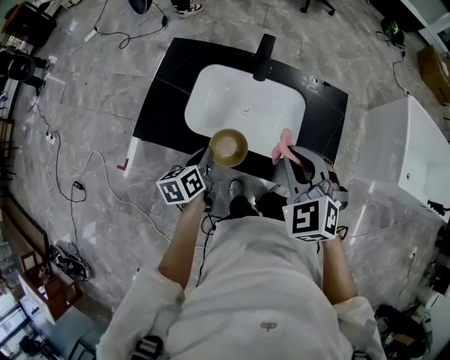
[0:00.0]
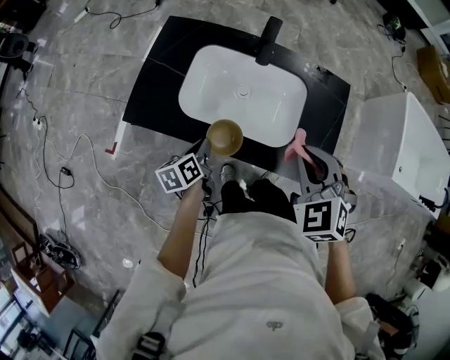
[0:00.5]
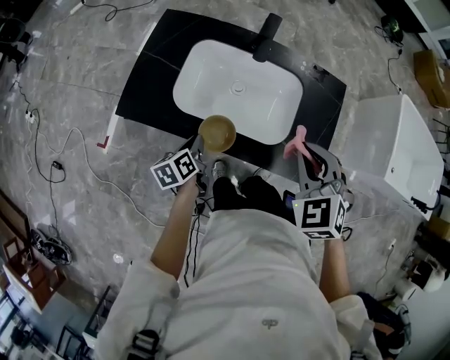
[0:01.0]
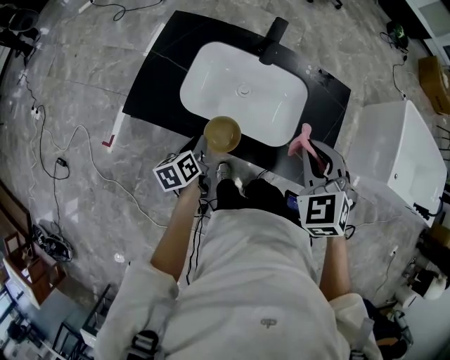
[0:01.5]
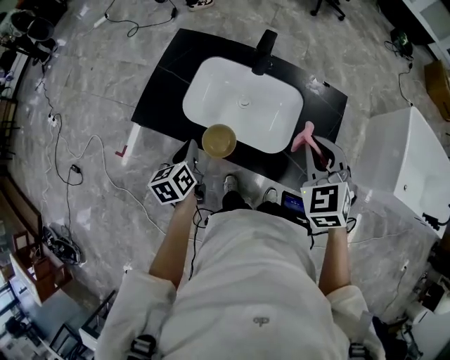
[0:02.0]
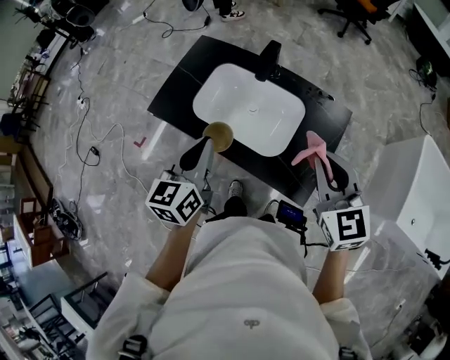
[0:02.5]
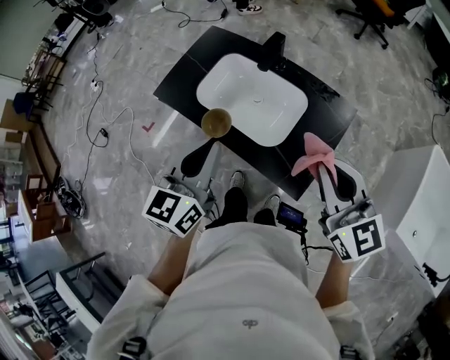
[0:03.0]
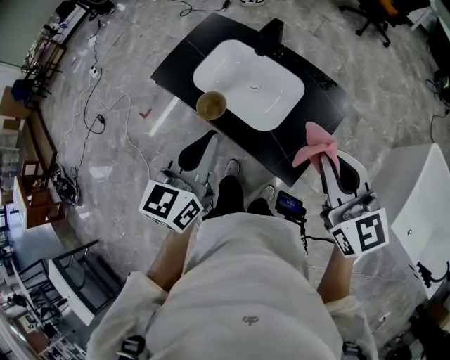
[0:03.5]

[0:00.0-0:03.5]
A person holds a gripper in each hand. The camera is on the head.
0:00.0 to 0:02.0: The left gripper moves some 10 cm downward and comes back. Meanwhile the right gripper shifts about 10 cm to the right.
0:02.0 to 0:03.5: The right gripper moves backward, to the right and upward, roughly 20 cm, and rotates roughly 50 degrees, while the left gripper moves upward, to the right and backward, roughly 35 cm, and changes its angle by roughly 30 degrees.

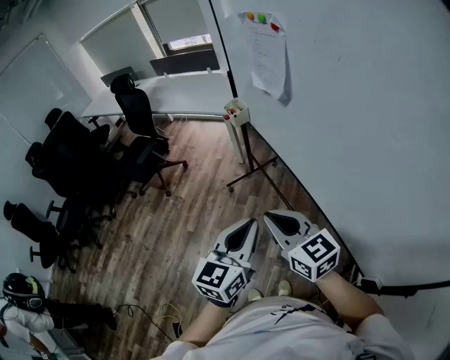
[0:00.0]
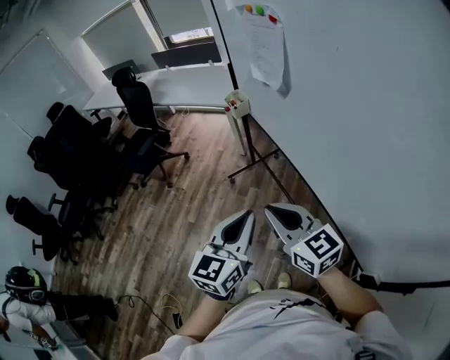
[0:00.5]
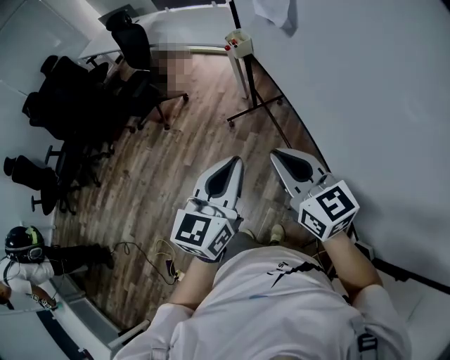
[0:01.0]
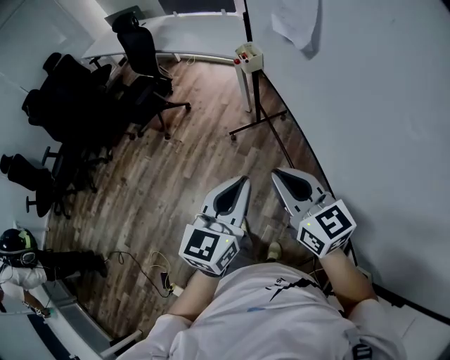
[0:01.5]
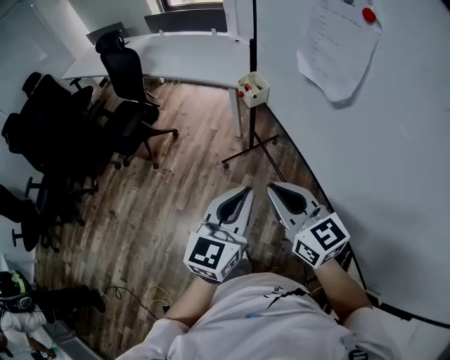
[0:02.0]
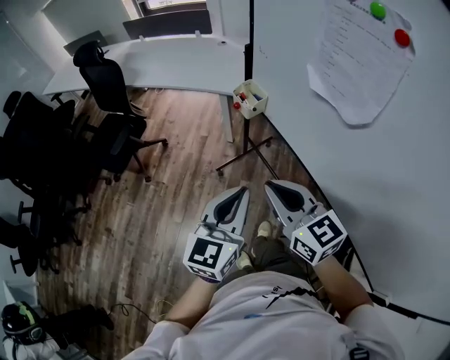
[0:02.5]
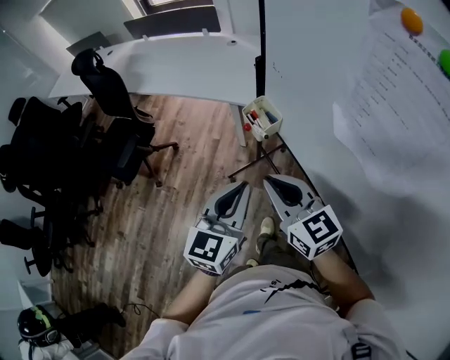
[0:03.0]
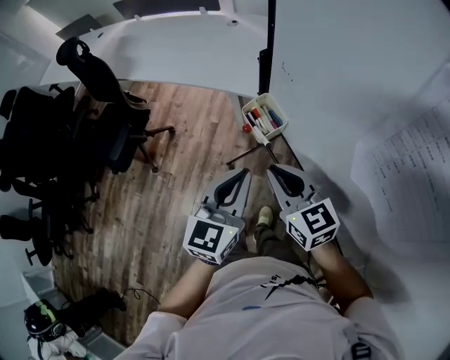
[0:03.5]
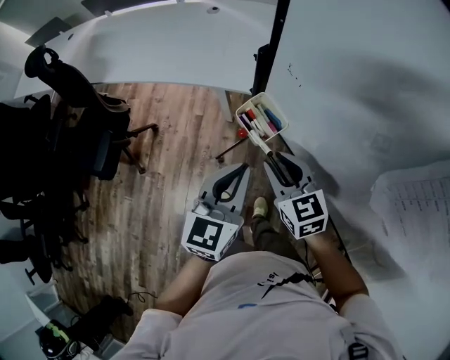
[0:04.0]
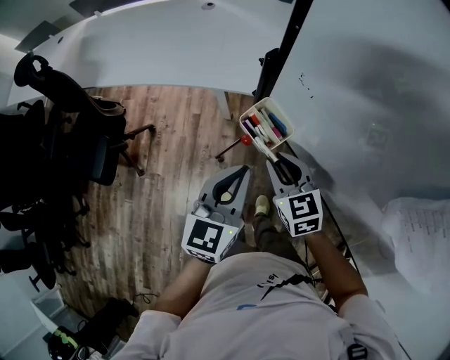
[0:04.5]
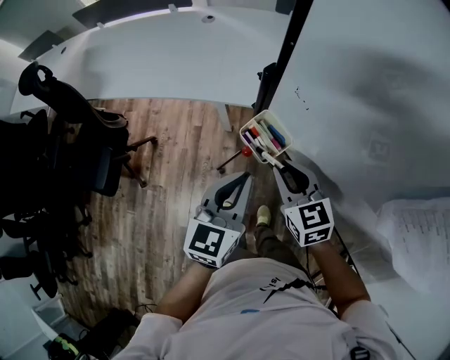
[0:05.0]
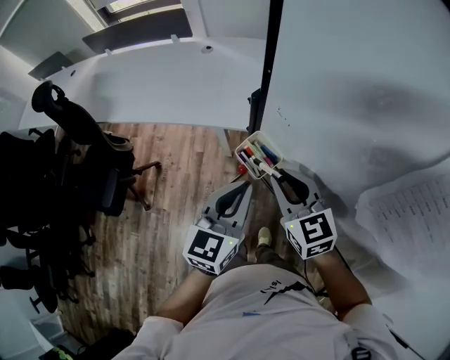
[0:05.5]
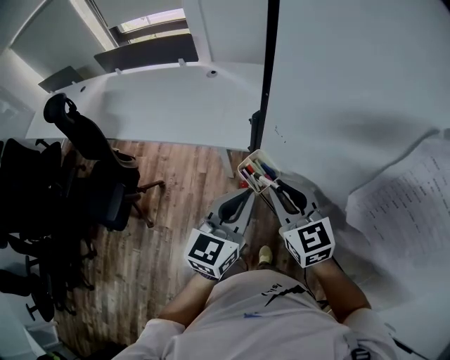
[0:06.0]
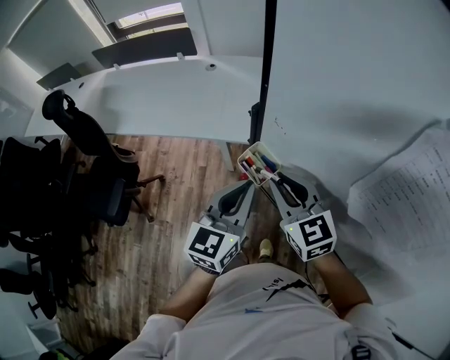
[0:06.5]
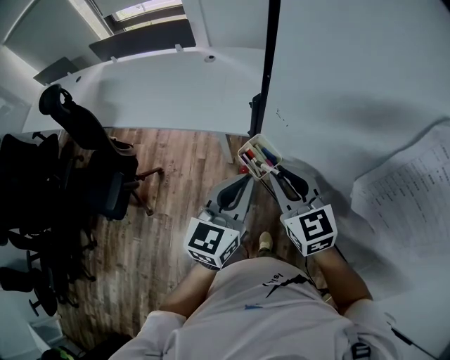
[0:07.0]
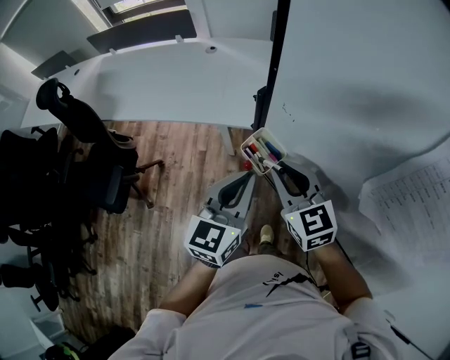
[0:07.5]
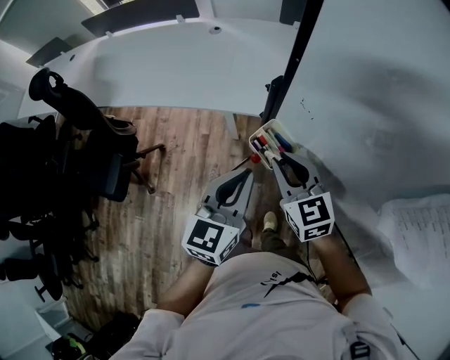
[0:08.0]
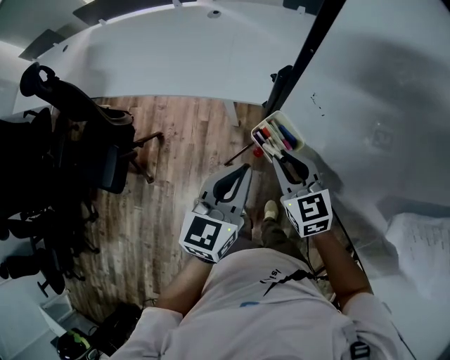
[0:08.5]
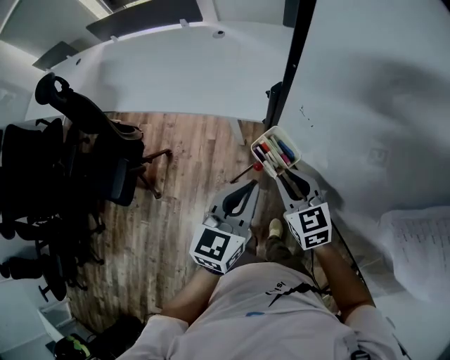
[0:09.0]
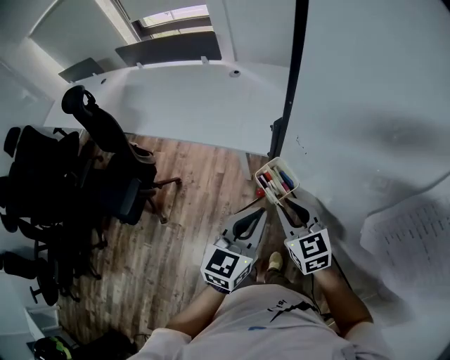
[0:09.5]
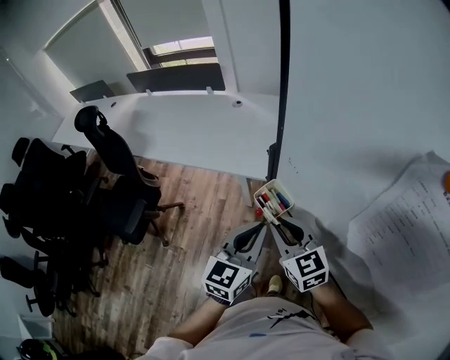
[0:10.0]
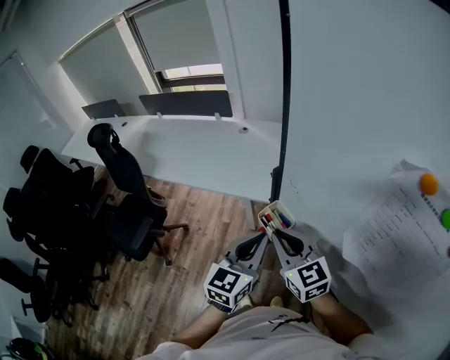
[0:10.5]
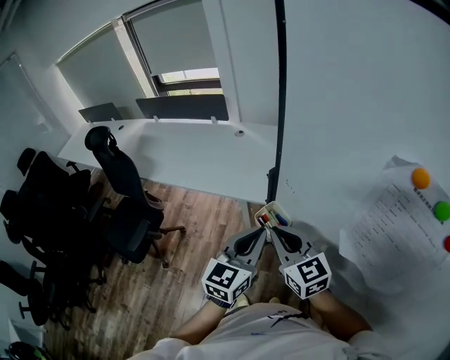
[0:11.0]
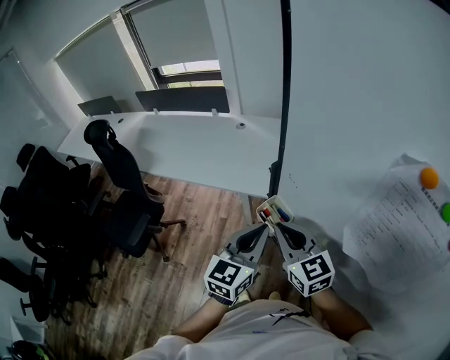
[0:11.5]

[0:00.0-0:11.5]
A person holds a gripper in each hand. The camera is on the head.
0:00.0 to 0:02.0: The right gripper heads forward, covering some 20 cm. Meanwhile the left gripper travels forward and to the left by some 20 cm.
0:02.0 to 0:04.0: The right gripper is displaced forward and downward by about 40 cm, turns by roughly 30 degrees, and opens up. The left gripper heads forward, covering roughly 40 cm.
0:04.0 to 0:06.0: The right gripper is displaced upward by about 15 cm. Meanwhile the left gripper shifts approximately 10 cm upward.
0:06.0 to 0:07.5: There are only small adjustments of the grippers.
0:07.5 to 0:09.5: The right gripper is displaced downward by about 5 cm.
0:09.5 to 0:11.5: The left gripper moves upward, about 10 cm. Meanwhile the right gripper travels upward by some 10 cm.

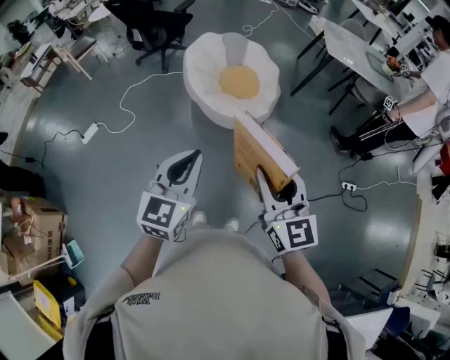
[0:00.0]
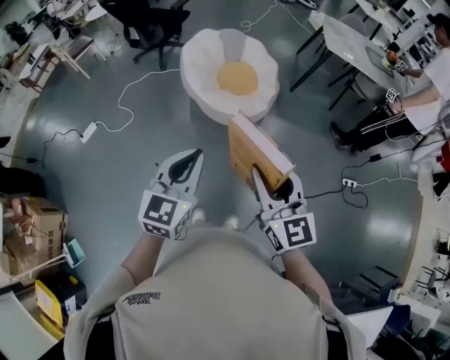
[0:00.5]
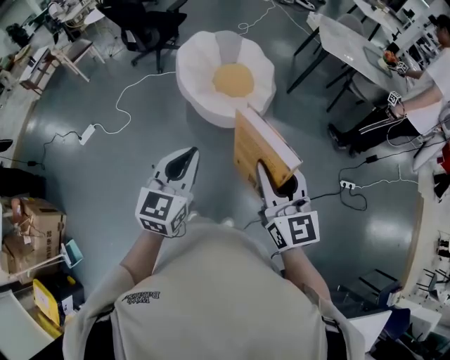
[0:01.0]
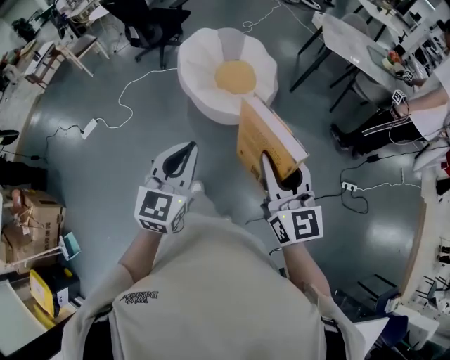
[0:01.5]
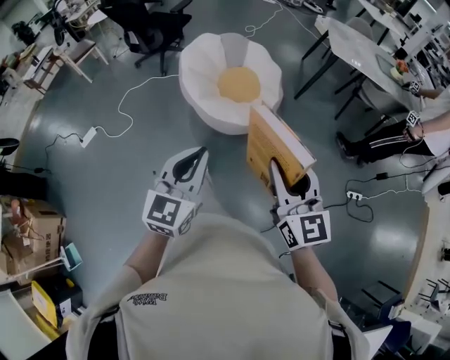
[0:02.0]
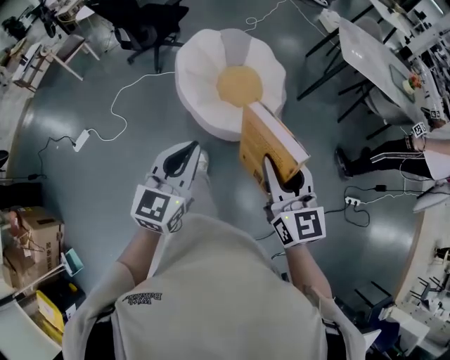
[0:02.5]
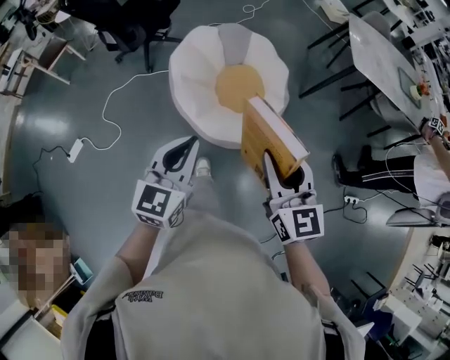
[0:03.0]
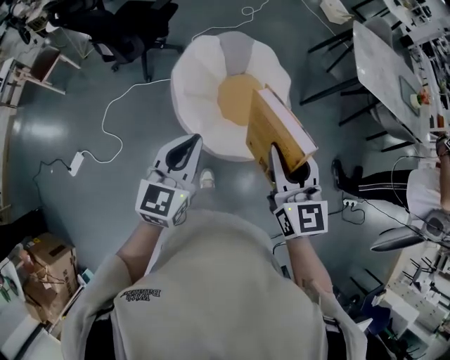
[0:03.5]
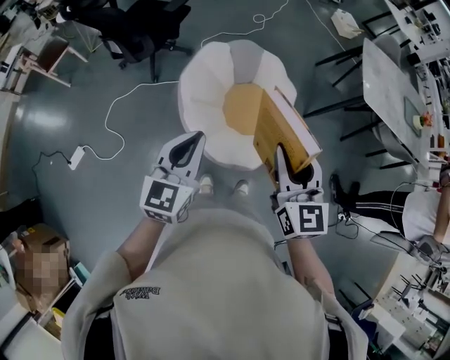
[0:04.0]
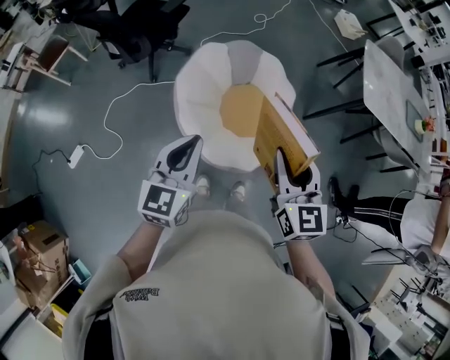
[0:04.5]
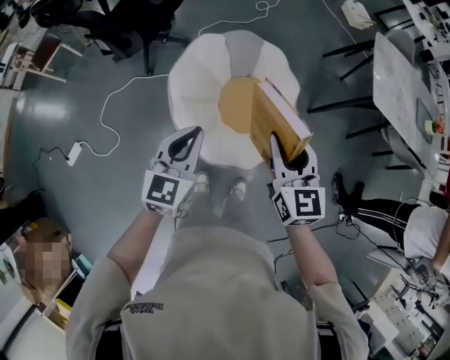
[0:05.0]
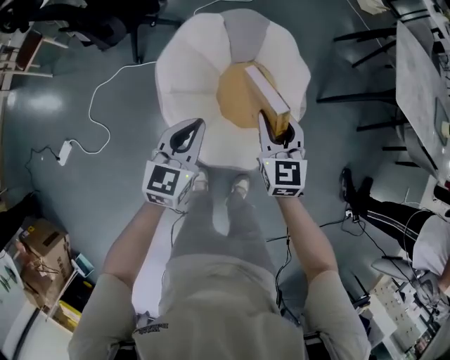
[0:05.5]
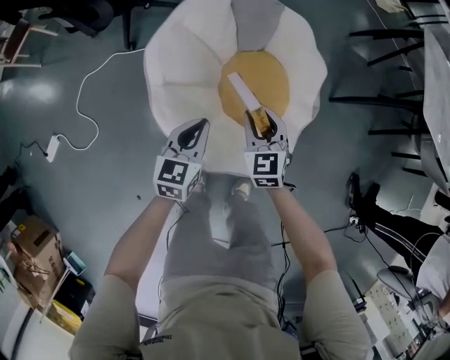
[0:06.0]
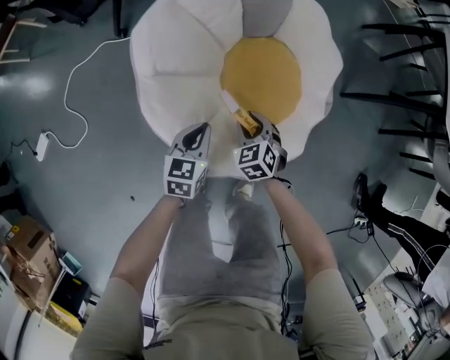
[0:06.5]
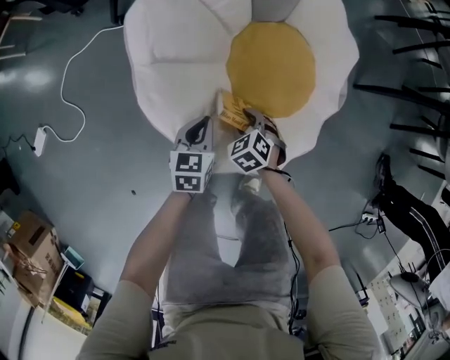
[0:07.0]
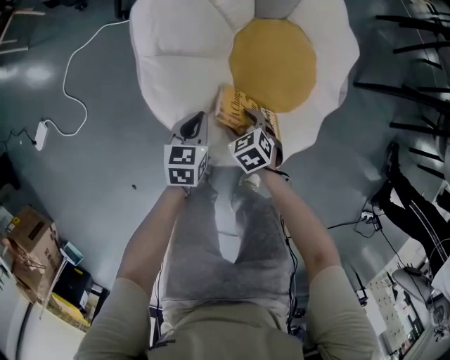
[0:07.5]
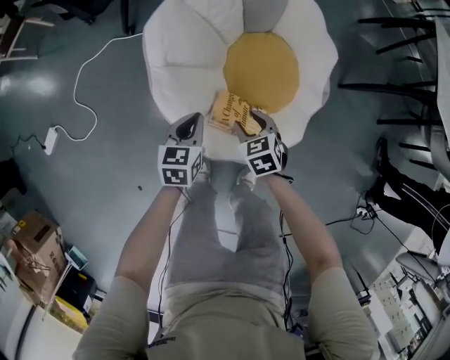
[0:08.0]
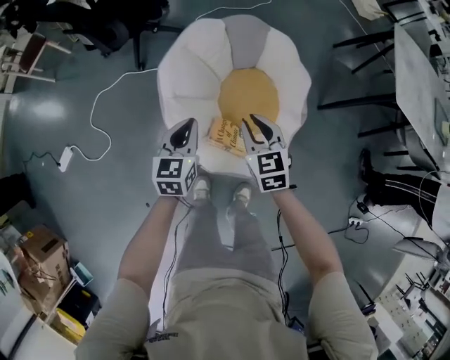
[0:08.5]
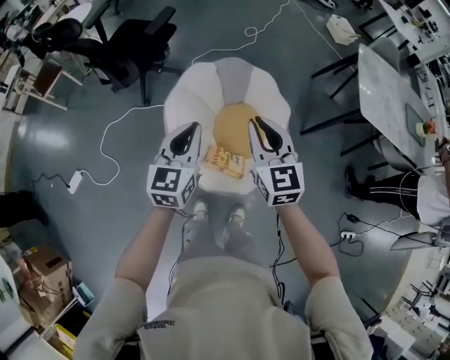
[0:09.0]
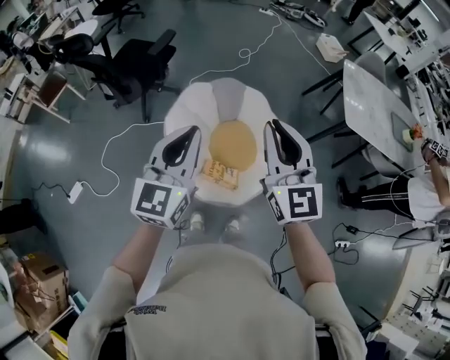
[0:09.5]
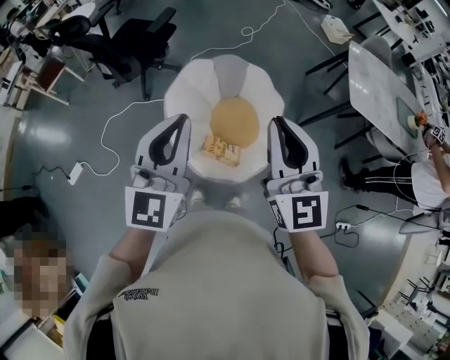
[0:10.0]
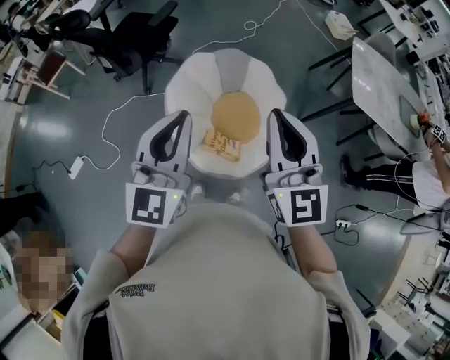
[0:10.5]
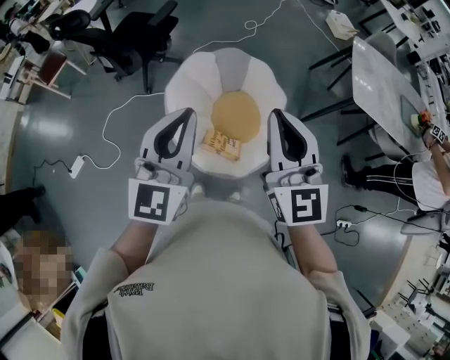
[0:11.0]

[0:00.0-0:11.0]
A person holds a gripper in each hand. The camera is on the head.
0:00.0 to 0:02.0: The right gripper moves to the right and forward, roughly 15 cm. Meanwhile the left gripper moves forward and to the right, roughly 10 cm.
0:02.0 to 0:03.5: The pair of grippers is taken forward, approximately 50 cm.
0:03.5 to 0:05.5: The two grippers go roughly 35 cm downward and forward.
0:05.5 to 0:07.5: The two grippers go some 40 cm downward. The right gripper tilts its fingers approximately 40 degrees downward, and opens its fingers. Meanwhile the left gripper changes its angle by approximately 30 degrees.
0:07.5 to 0:09.0: Both grippers travel together upward, approximately 60 cm. The right gripper angles its fingers upward, by approximately 50 degrees, and closes its fingers. Meanwhile the left gripper tips its fingers upward by approximately 30 degrees.
0:09.0 to 0:11.0: The two grippers go approximately 20 cm upward and backward.
